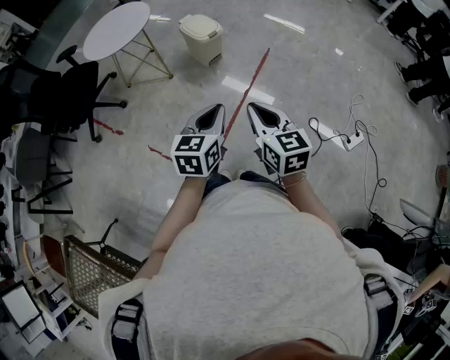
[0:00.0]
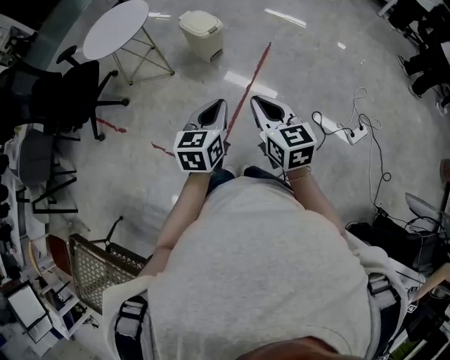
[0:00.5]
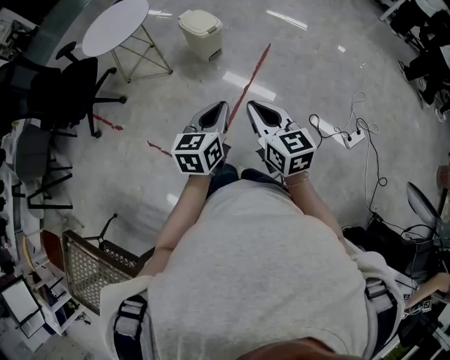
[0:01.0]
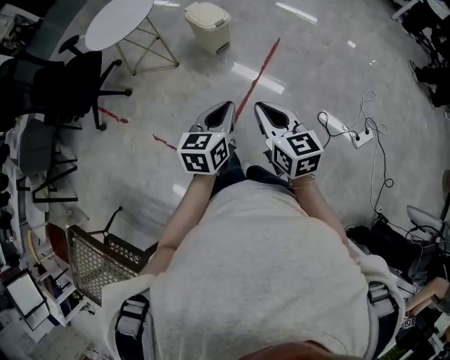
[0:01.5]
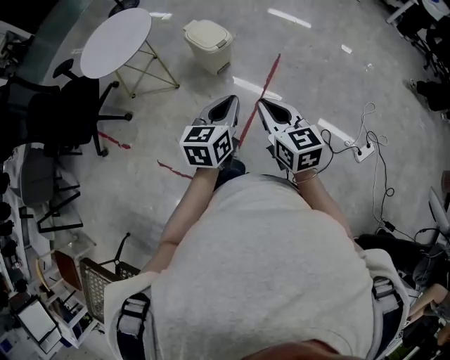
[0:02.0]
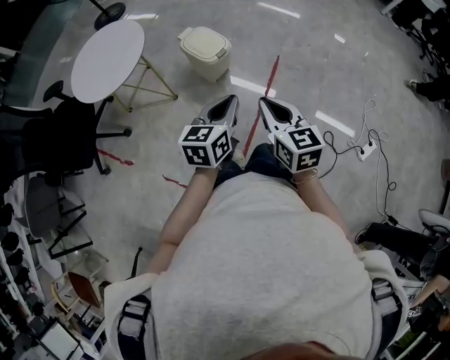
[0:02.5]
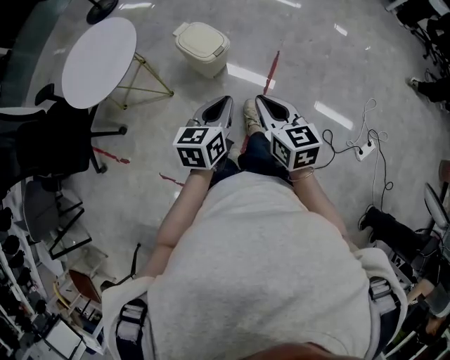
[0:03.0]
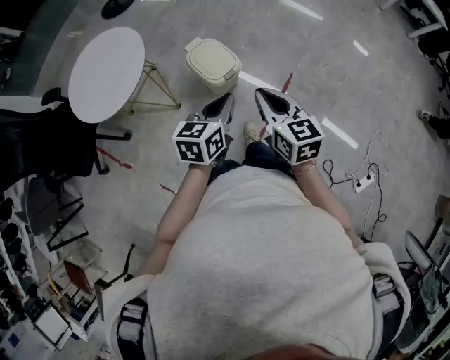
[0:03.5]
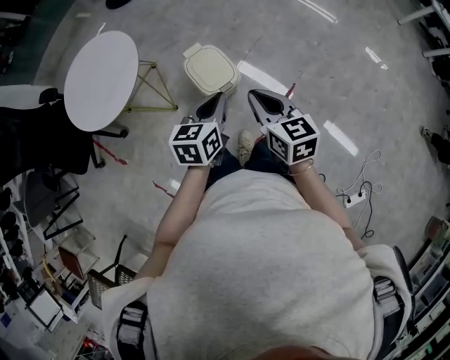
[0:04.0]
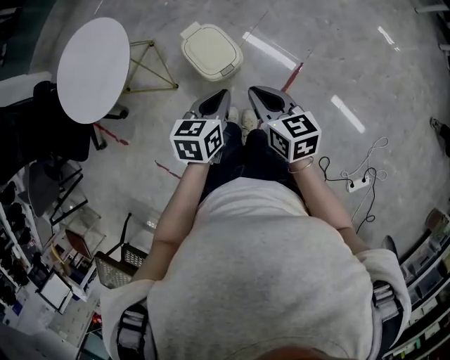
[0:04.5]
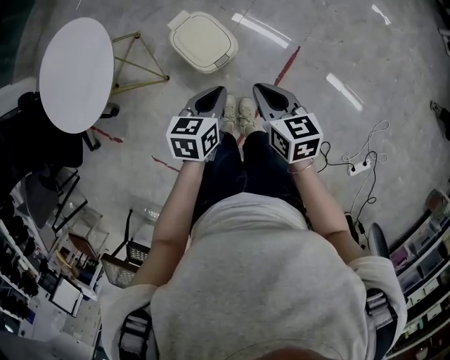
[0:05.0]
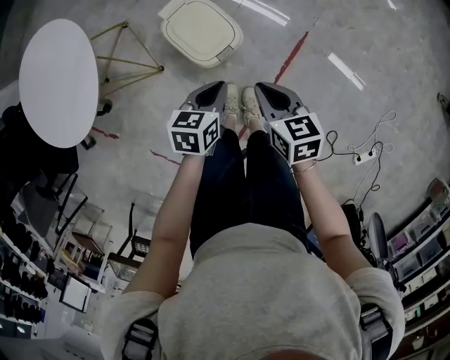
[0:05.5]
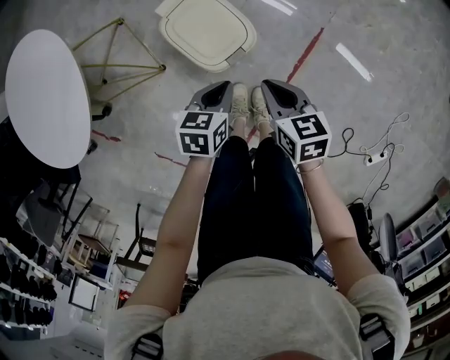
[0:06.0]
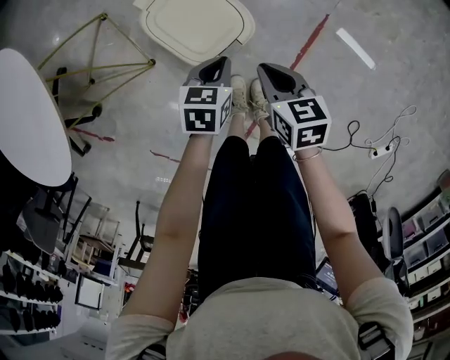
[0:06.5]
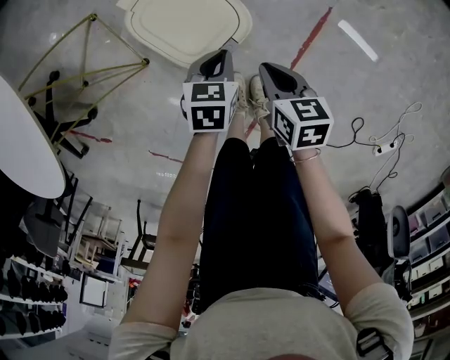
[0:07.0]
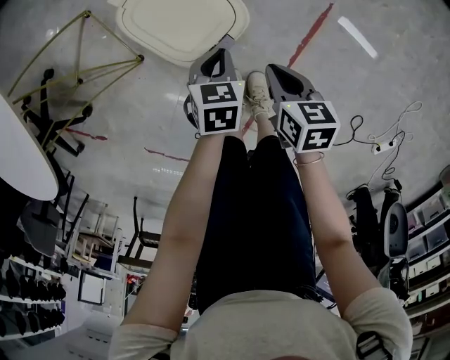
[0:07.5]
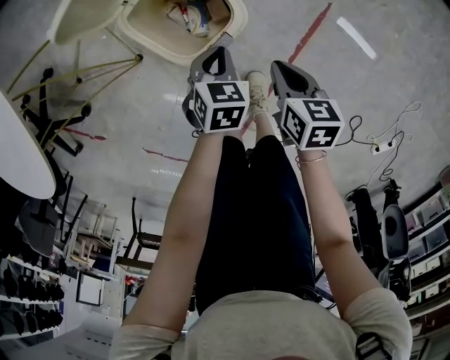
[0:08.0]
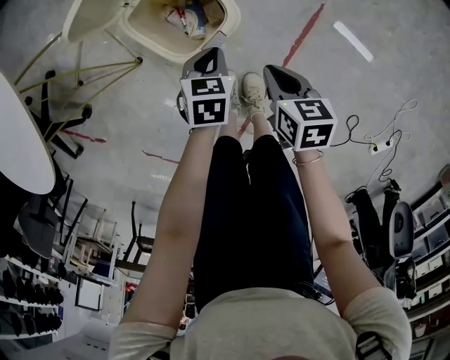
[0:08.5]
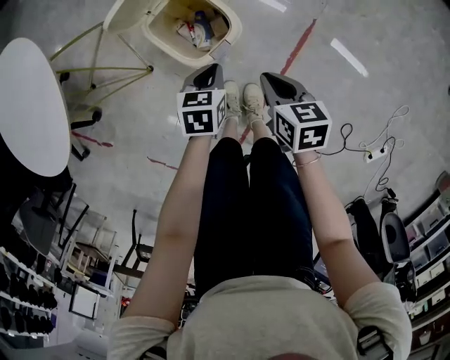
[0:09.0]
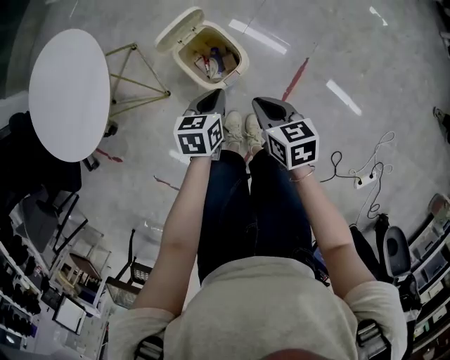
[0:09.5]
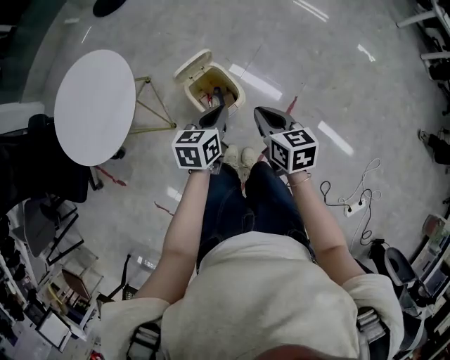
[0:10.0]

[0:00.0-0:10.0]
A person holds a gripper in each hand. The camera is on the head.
0:00.0 to 0:02.0: Both grippers travel together forward, approximately 15 cm.
0:02.0 to 0:04.0: Both grippers are carried forward, roughly 40 cm.
0:04.0 to 0:06.0: The two grippers go some 30 cm downward. The right gripper rotates approximately 30 degrees; the left gripper rotates about 30 degrees.
0:06.0 to 0:08.0: The right gripper moves downward and to the right, some 15 cm, while the left gripper travels downward by about 15 cm, and turns by about 30 degrees.
0:08.0 to 0:10.0: The two grippers go about 35 cm upward. The right gripper rotates roughly 20 degrees. The left gripper changes its angle by roughly 40 degrees.

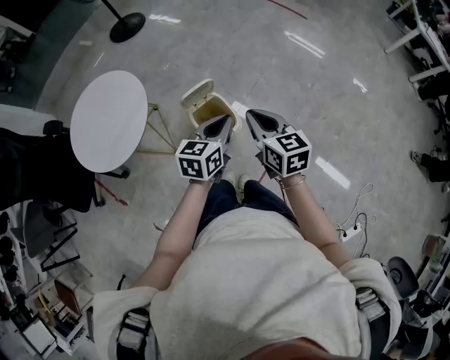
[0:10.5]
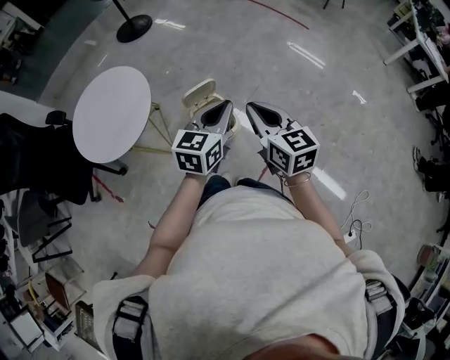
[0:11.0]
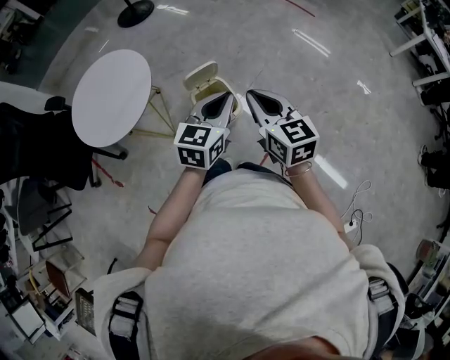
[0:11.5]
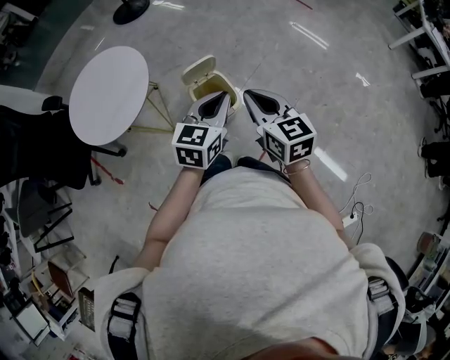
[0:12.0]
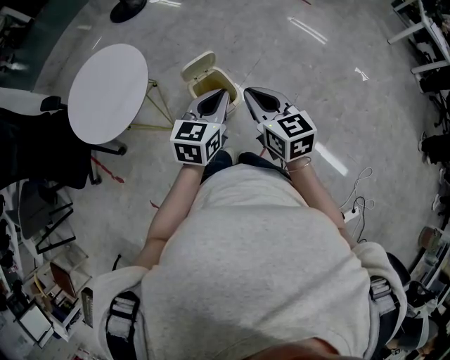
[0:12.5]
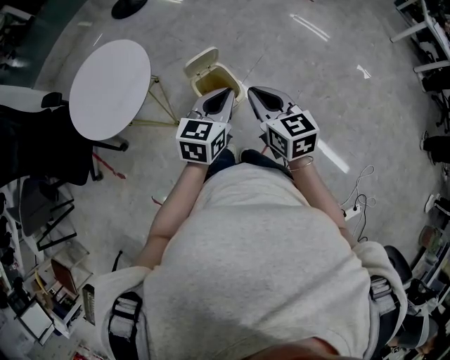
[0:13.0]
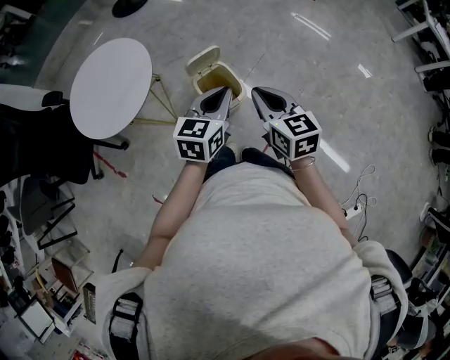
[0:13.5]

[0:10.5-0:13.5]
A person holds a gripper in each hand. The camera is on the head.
0:10.5 to 0:12.0: The right gripper moves roughly 5 cm. The left gripper heads upward, covering about 5 cm.
0:12.0 to 0:13.5: The grippers stay close to where they were, moving slightly.

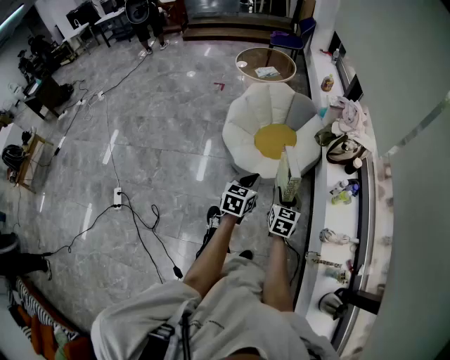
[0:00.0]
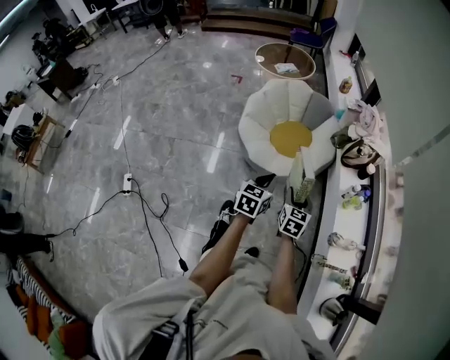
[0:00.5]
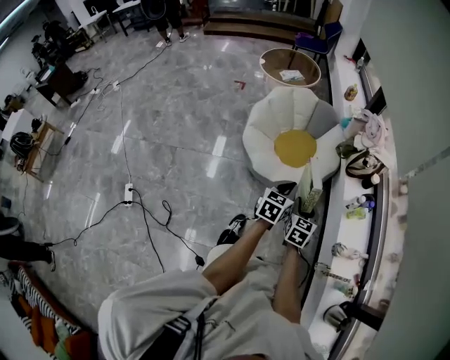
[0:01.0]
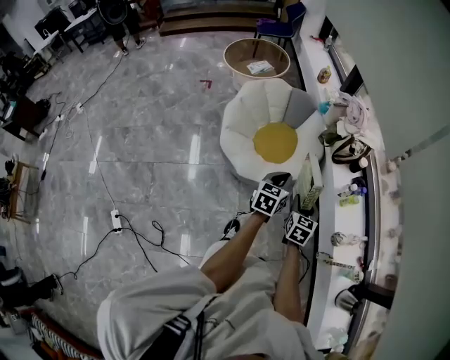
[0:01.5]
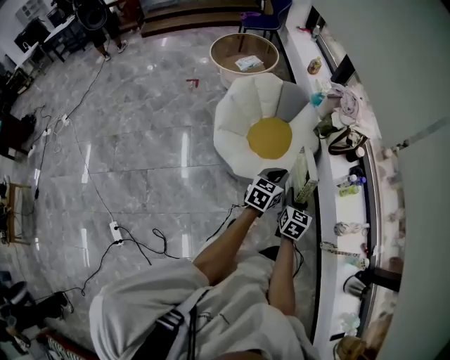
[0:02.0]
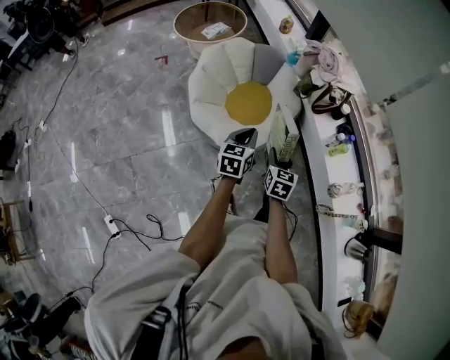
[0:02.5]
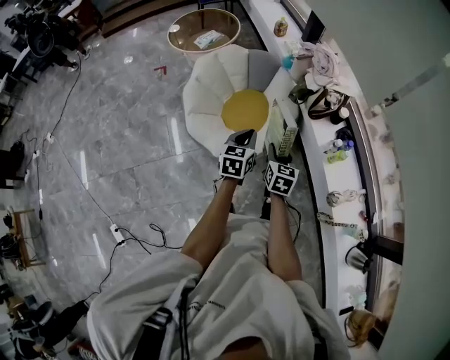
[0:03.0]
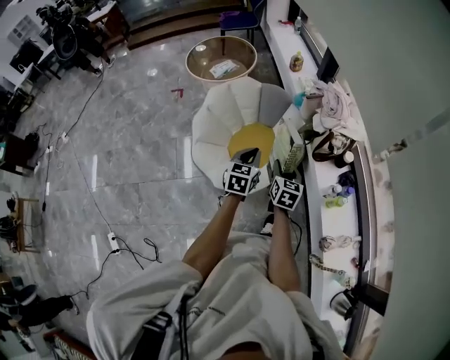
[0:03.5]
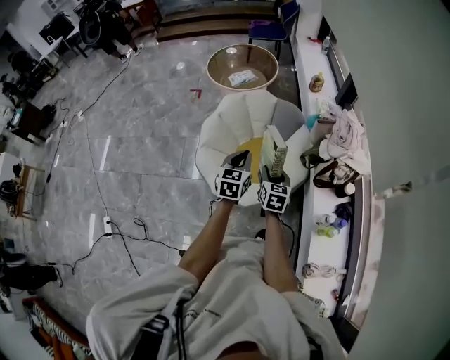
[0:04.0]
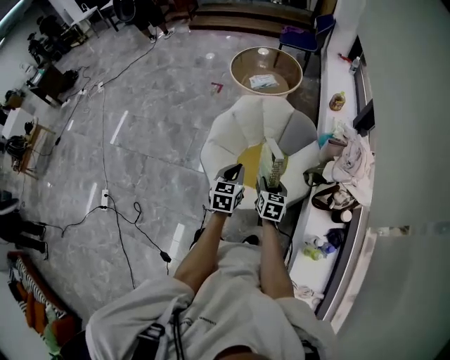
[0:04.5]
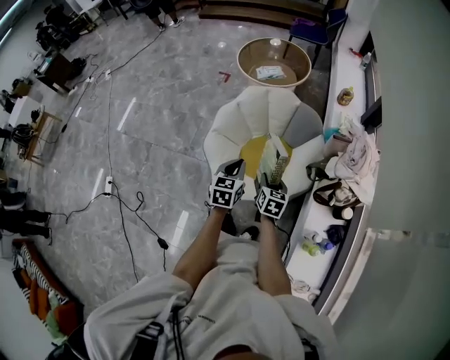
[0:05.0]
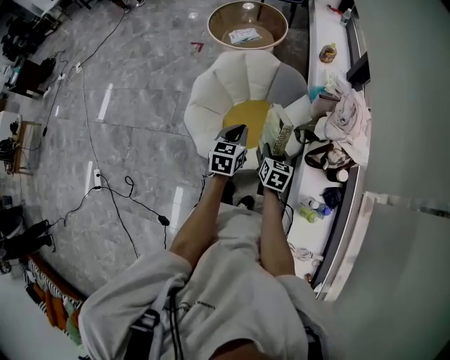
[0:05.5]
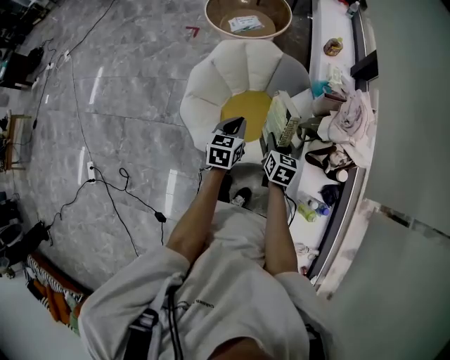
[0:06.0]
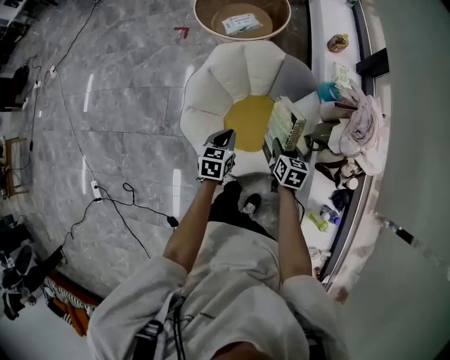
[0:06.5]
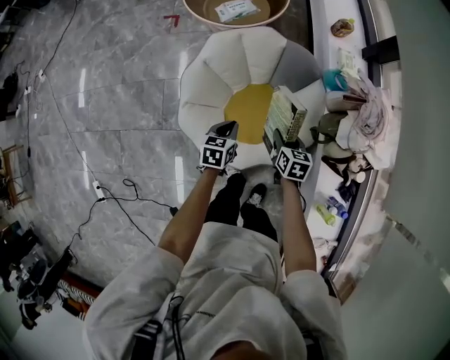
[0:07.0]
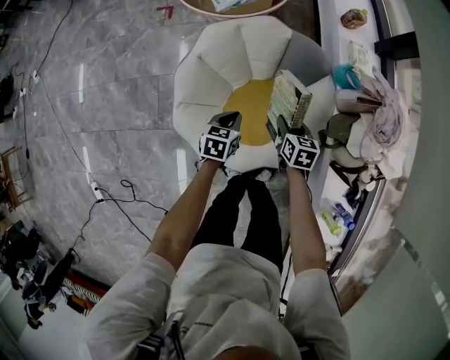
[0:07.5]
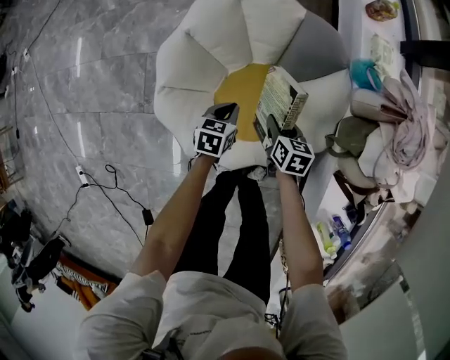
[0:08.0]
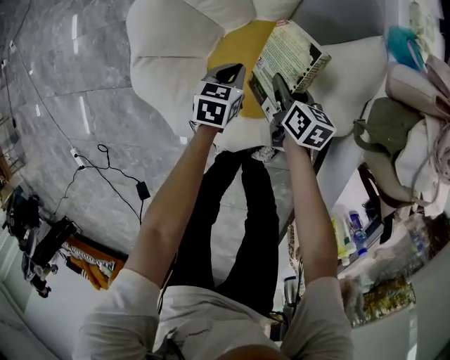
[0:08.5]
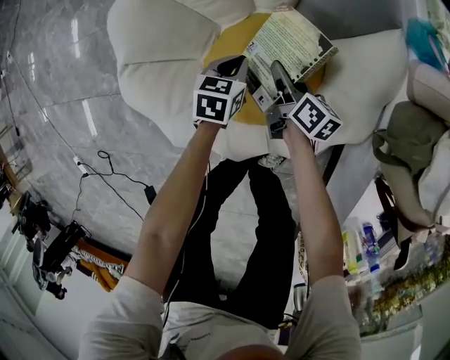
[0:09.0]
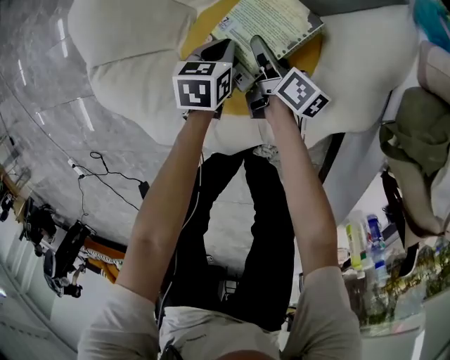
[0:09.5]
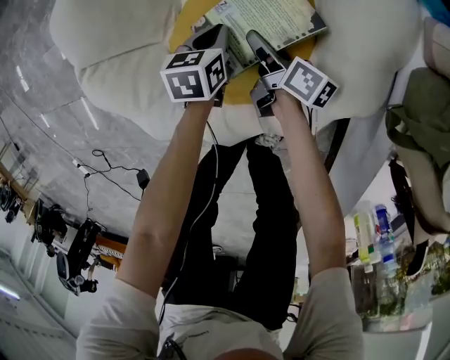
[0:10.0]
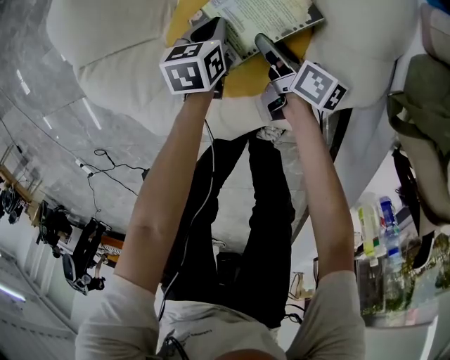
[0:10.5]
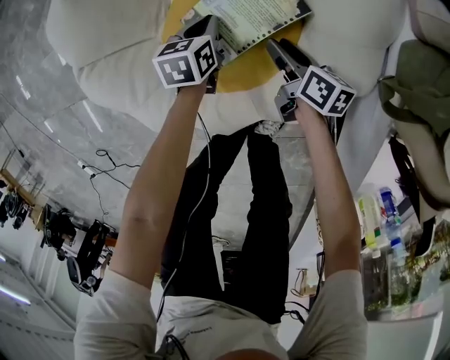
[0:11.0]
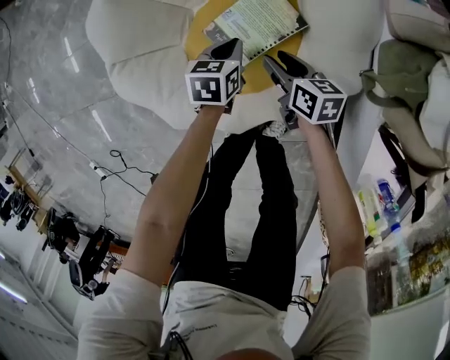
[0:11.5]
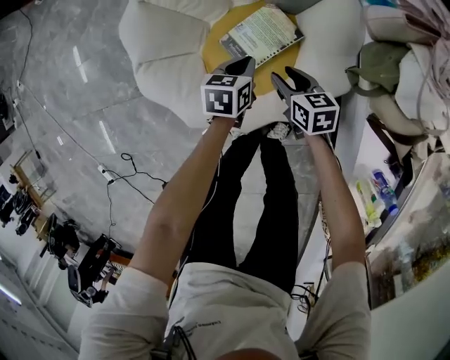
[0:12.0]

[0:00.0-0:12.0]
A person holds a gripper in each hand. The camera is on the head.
0:00.0 to 0:02.0: The right gripper travels to the left and forward by approximately 15 cm, and turns by roughly 20 degrees. The left gripper is displaced forward and to the left by some 15 cm, and swivels about 30 degrees.
0:02.0 to 0:04.0: The left gripper shifts by approximately 25 cm, and changes its angle by approximately 30 degrees; the right gripper ends up about 30 cm from where it was, and swivels approximately 20 degrees.
0:04.0 to 0:06.0: The right gripper heads forward, to the right and downward, covering roughly 10 cm, while the left gripper travels forward and downward by about 10 cm.
0:06.0 to 0:08.0: The grippers both shift downward and forward by about 35 cm. The left gripper turns by roughly 20 degrees.
0:08.0 to 0:10.0: The grippers both shift downward by approximately 25 cm. The right gripper swivels roughly 40 degrees.
0:10.0 to 0:12.0: The right gripper is displaced upward and backward by some 20 cm, and rolls counterclockwise, seen from behind, by some 40 degrees, while the left gripper goes approximately 20 cm upward.

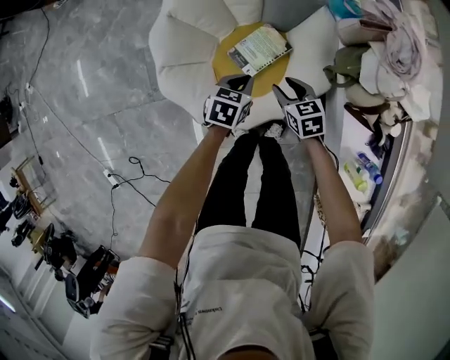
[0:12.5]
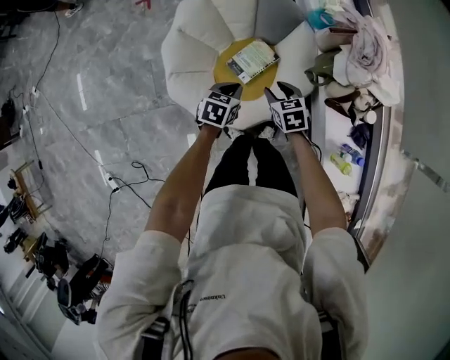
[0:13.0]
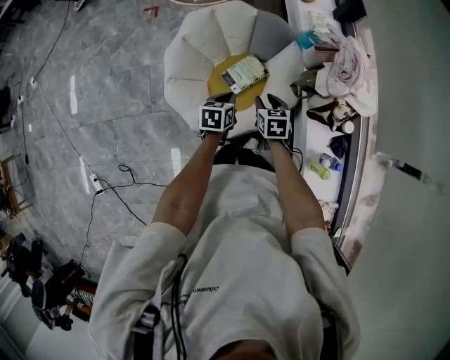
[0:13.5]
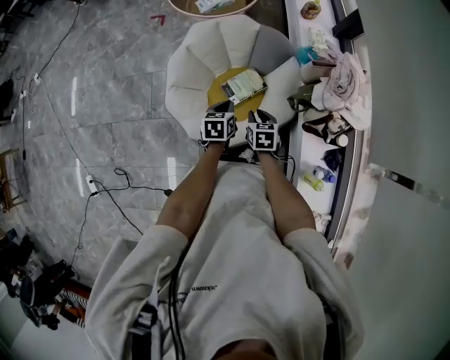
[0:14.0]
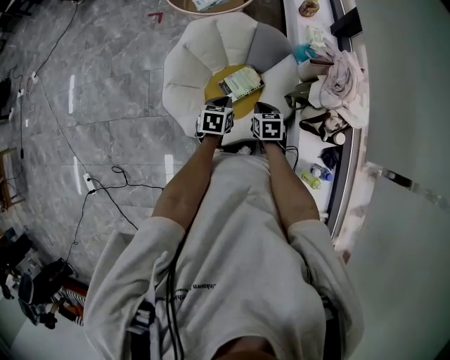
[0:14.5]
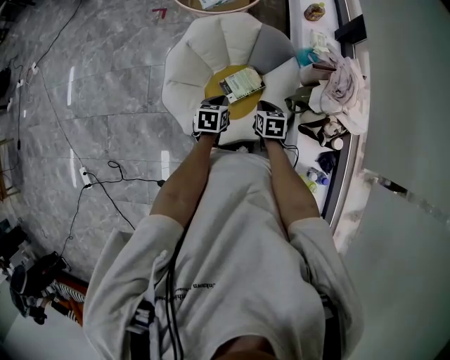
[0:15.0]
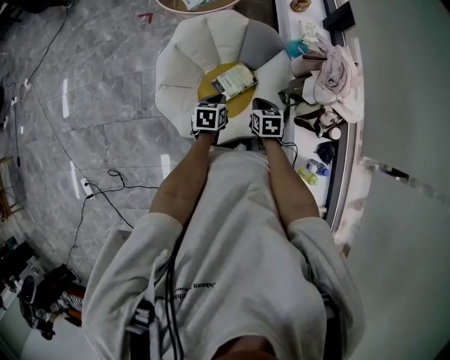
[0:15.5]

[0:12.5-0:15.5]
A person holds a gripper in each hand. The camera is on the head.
0:12.5 to 0:14.0: The two grippers go roughly 20 cm upward. The left gripper rotates approximately 30 degrees.
0:14.0 to 0:15.5: The right gripper moves approximately 5 cm.
